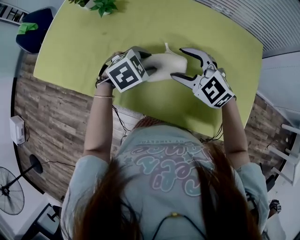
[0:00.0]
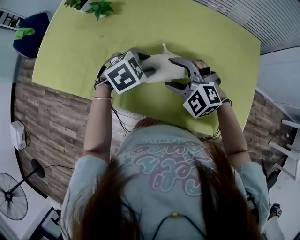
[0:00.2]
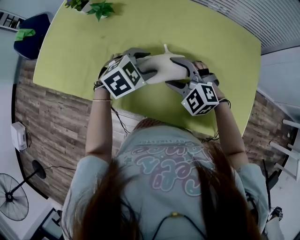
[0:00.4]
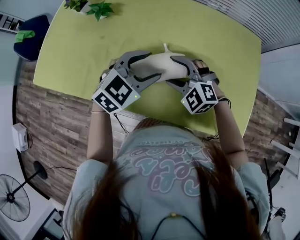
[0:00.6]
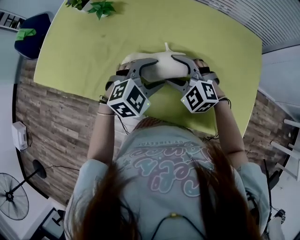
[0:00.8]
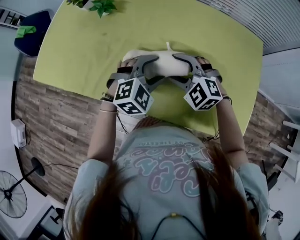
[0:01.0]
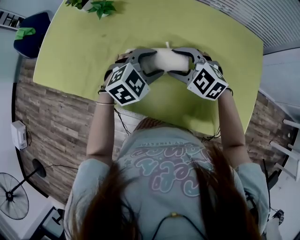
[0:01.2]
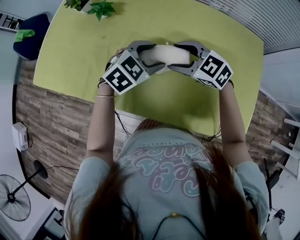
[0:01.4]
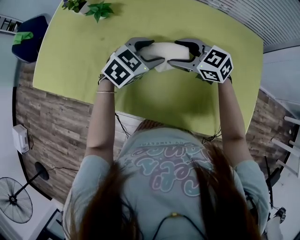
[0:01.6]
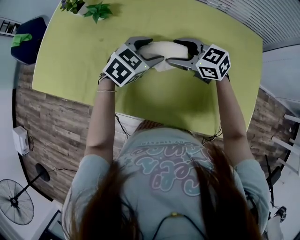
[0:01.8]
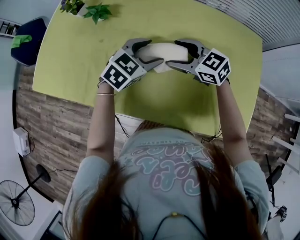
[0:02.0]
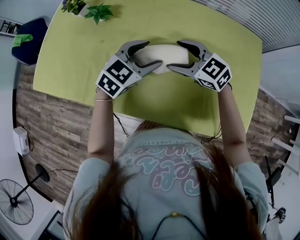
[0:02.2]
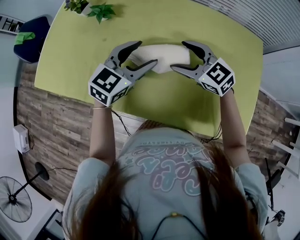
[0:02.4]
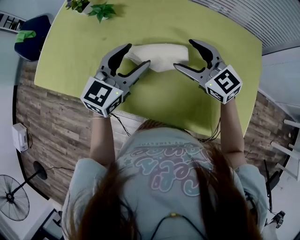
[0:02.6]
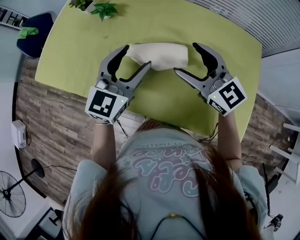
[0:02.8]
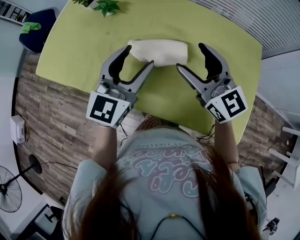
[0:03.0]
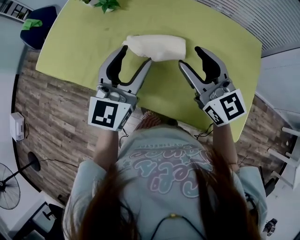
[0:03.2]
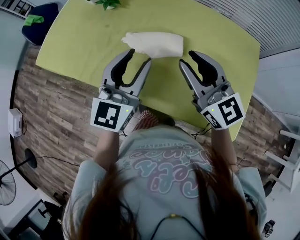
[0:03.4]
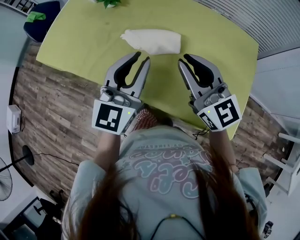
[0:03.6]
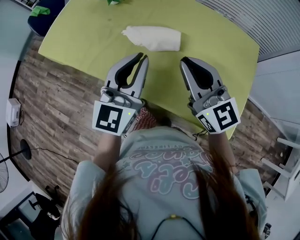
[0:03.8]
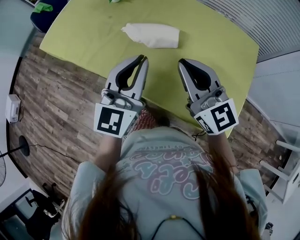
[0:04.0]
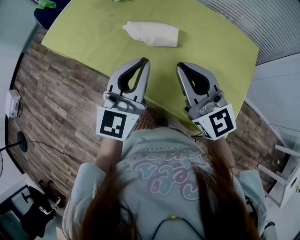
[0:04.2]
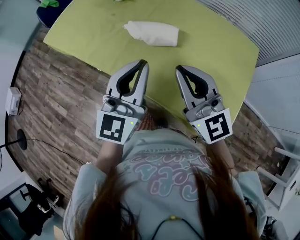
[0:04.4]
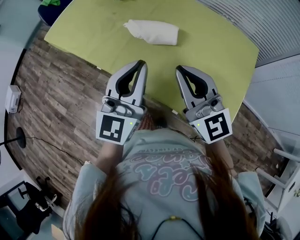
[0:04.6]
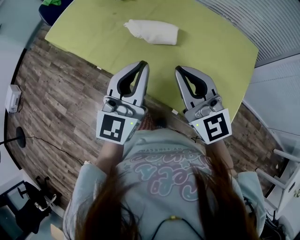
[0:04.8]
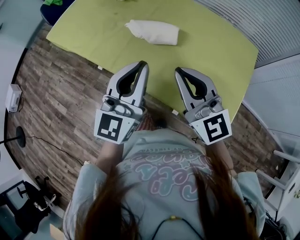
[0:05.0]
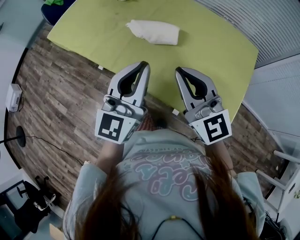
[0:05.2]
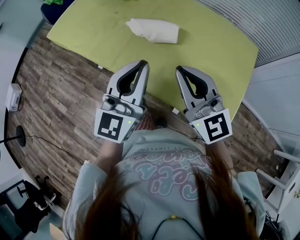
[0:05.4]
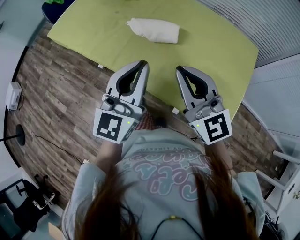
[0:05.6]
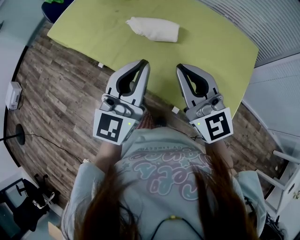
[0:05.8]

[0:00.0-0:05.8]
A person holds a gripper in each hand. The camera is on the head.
0:00.0 to 0:01.4: The right gripper ends up approximately 5 cm from where it was.
0:01.4 to 0:02.8: The right gripper travels upward by approximately 10 cm, and turns by roughly 30 degrees. The left gripper is displaced upward and to the left by approximately 10 cm, and angles its fingers upward, by roughly 30 degrees.
0:02.8 to 0:04.4: The two grippers go about 15 cm backward. The right gripper closes; the left gripper rotates roughly 30 degrees, and closes up.
0:04.4 to 0:05.8: The grippers move only a little.

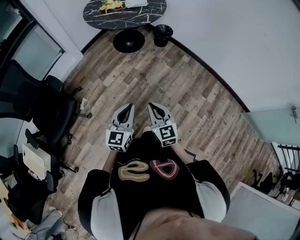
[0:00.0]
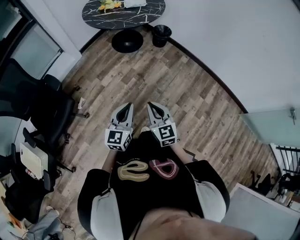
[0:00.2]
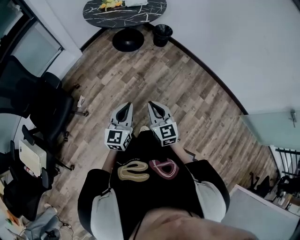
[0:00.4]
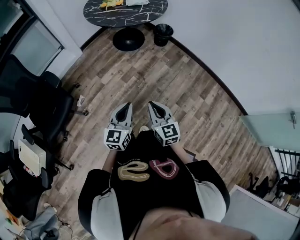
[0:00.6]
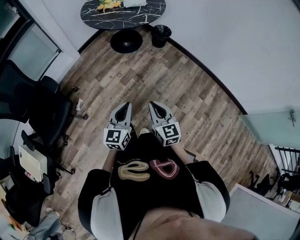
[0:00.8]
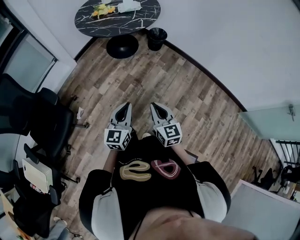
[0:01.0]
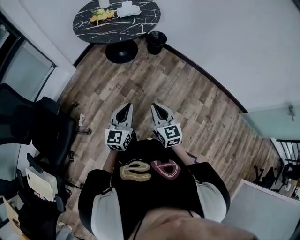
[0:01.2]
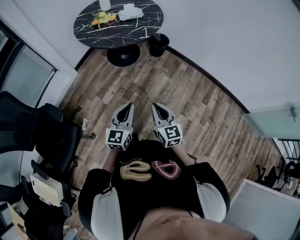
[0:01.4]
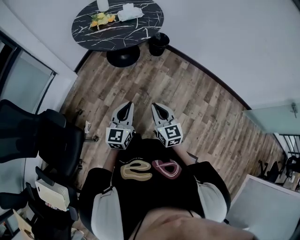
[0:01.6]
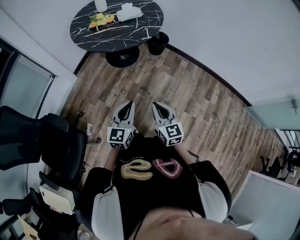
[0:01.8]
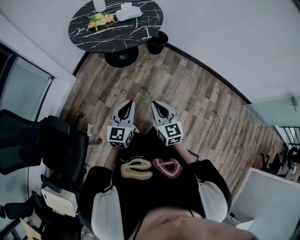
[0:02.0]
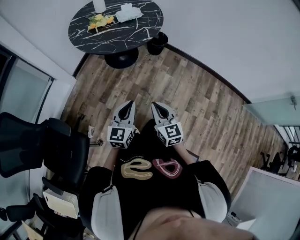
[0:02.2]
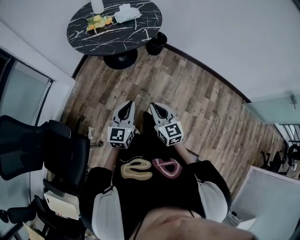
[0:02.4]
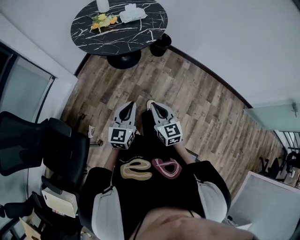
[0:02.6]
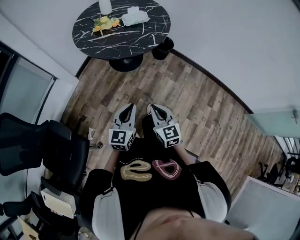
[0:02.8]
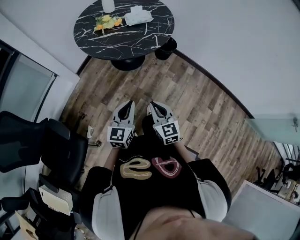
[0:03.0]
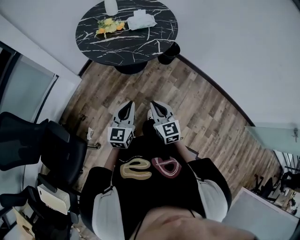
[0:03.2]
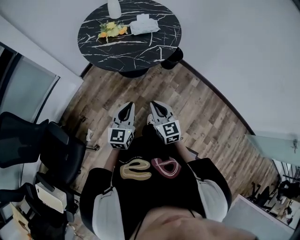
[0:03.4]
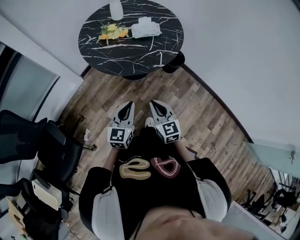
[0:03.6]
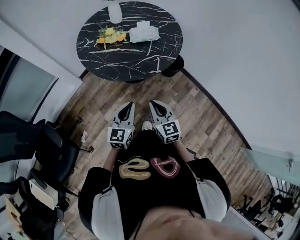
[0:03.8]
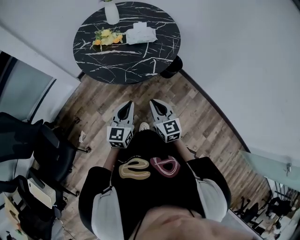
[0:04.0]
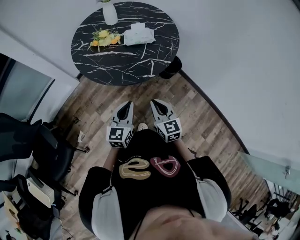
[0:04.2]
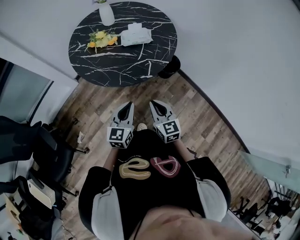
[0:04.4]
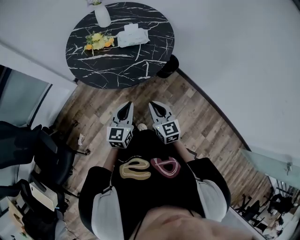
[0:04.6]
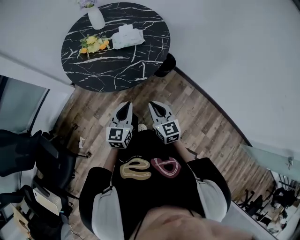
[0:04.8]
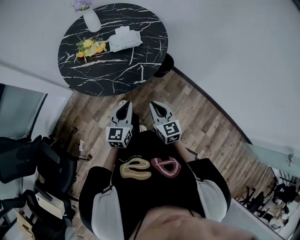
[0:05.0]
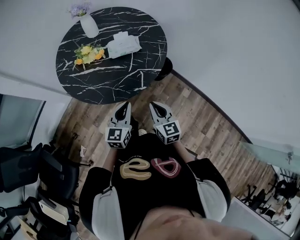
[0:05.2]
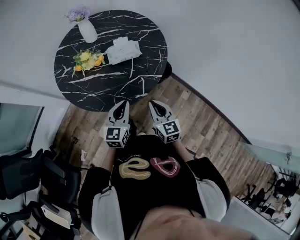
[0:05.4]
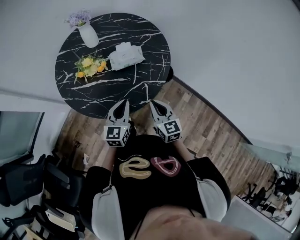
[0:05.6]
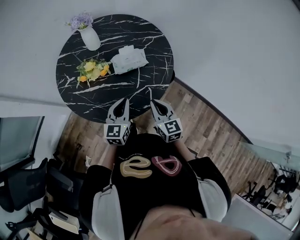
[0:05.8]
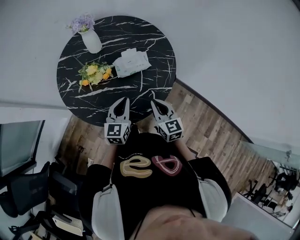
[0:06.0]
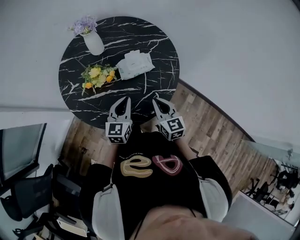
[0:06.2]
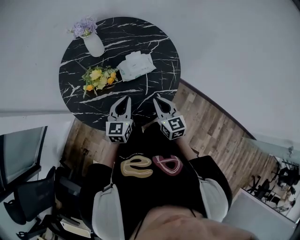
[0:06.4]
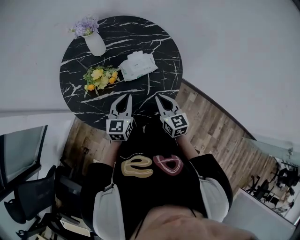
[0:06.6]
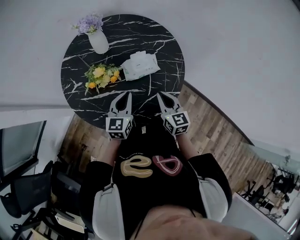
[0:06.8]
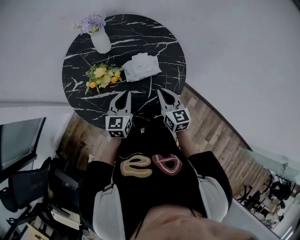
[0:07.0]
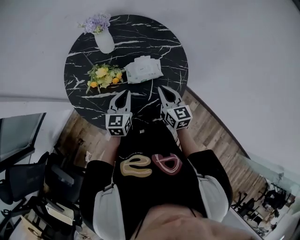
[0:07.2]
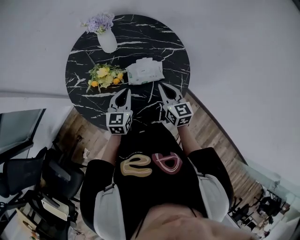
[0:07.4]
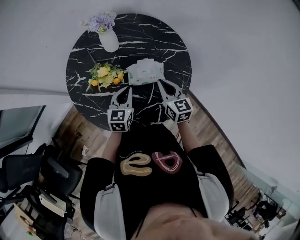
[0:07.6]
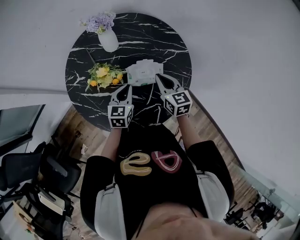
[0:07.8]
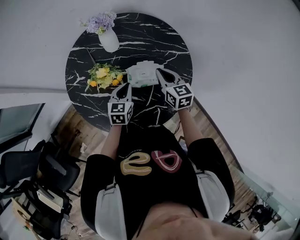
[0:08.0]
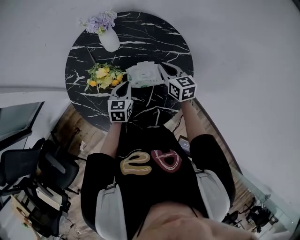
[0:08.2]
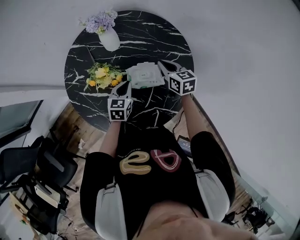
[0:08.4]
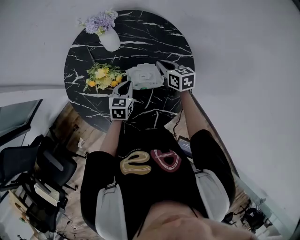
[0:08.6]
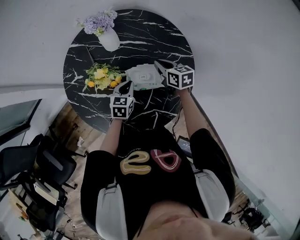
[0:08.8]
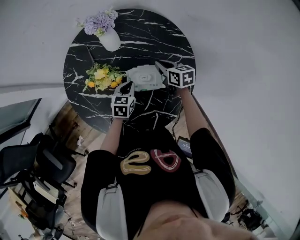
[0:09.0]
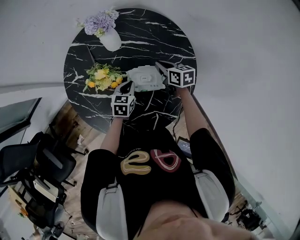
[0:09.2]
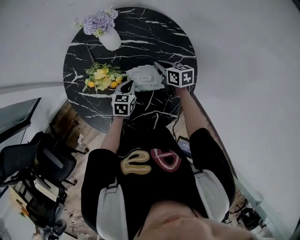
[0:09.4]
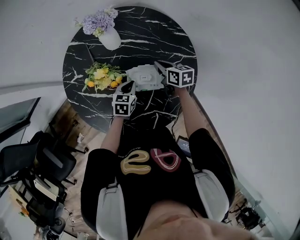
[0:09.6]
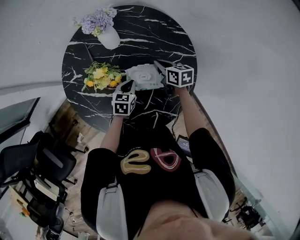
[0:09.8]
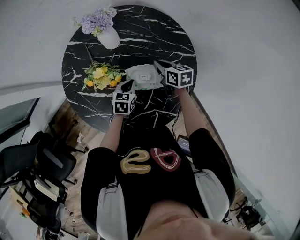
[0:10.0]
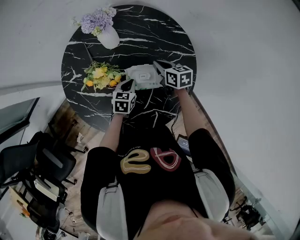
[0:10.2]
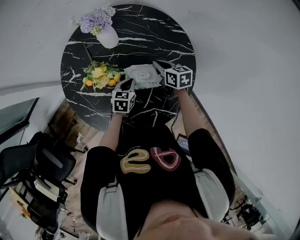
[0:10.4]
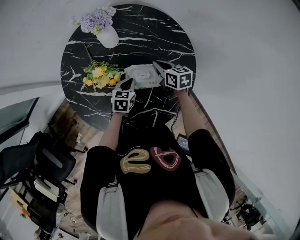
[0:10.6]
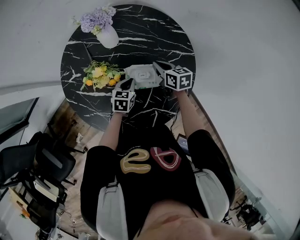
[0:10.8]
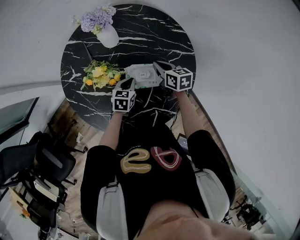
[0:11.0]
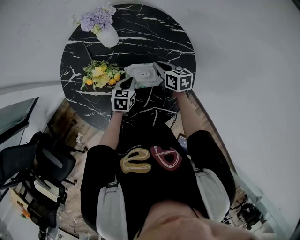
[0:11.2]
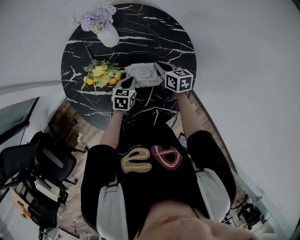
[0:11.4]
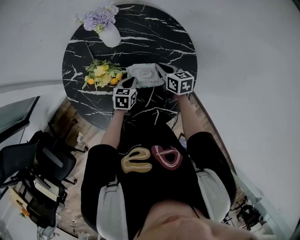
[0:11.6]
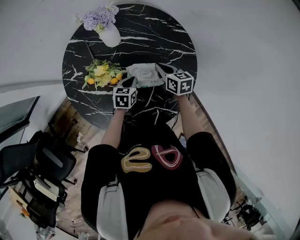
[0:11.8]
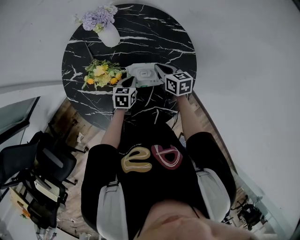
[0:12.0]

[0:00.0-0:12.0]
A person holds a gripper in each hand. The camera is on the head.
0:00.0 to 0:01.6: Both grippers travel together forward, some 20 cm.
0:01.6 to 0:03.0: The left gripper is displaced forward by approximately 10 cm. Meanwhile the right gripper moves forward and to the left, about 15 cm.
0:03.0 to 0:04.4: The two grippers go some 25 cm forward and to the right.
0:04.4 to 0:06.0: The grippers both shift forward by roughly 25 cm.
0:06.0 to 0:07.6: The left gripper travels forward by about 15 cm. The right gripper moves forward, about 20 cm.
0:07.6 to 0:09.0: The right gripper moves forward and downward, approximately 15 cm, and swivels about 30 degrees. The left gripper heads downward and forward, covering some 10 cm.
0:09.0 to 0:12.0: The grippers move only a little.

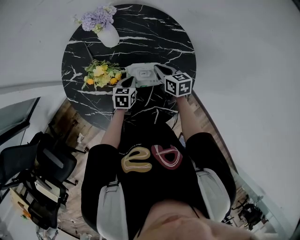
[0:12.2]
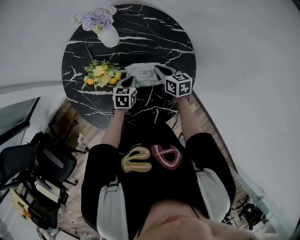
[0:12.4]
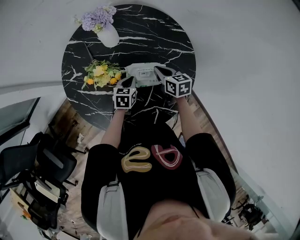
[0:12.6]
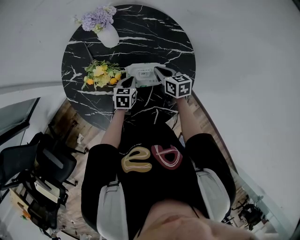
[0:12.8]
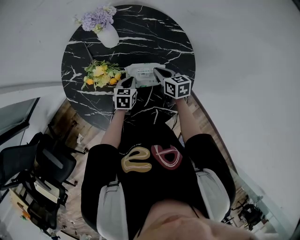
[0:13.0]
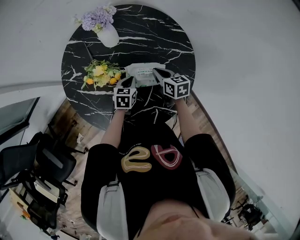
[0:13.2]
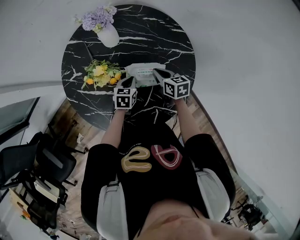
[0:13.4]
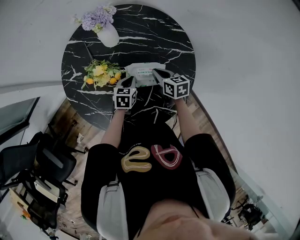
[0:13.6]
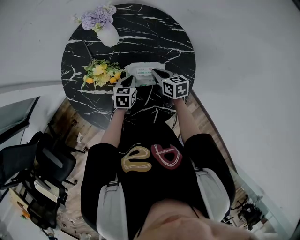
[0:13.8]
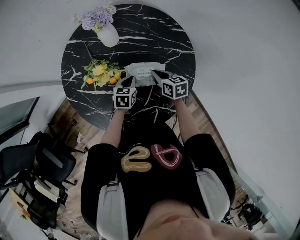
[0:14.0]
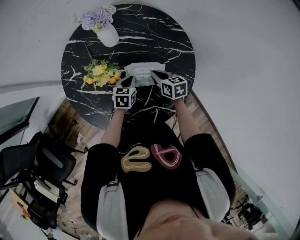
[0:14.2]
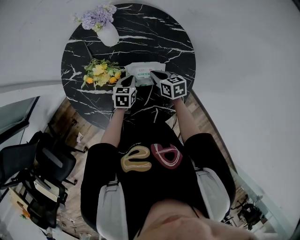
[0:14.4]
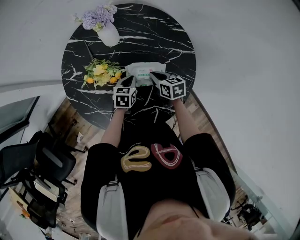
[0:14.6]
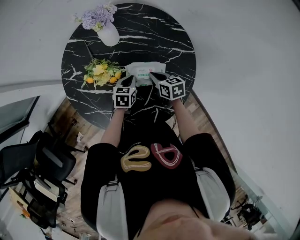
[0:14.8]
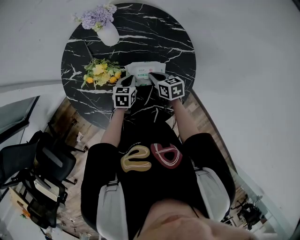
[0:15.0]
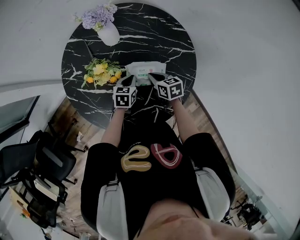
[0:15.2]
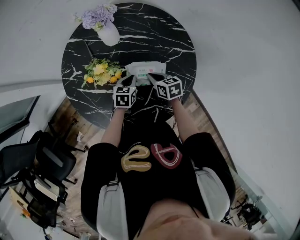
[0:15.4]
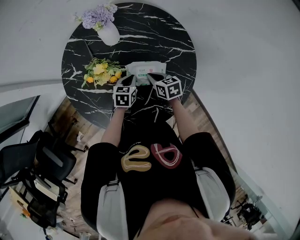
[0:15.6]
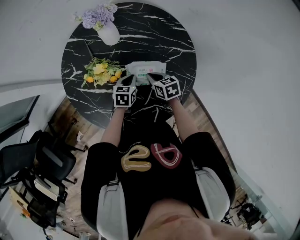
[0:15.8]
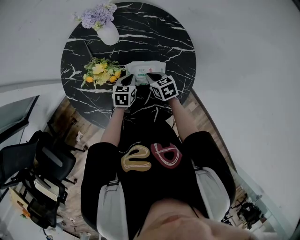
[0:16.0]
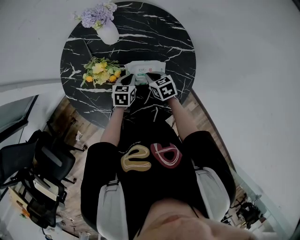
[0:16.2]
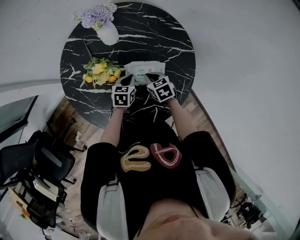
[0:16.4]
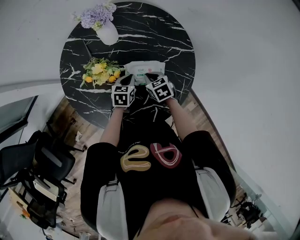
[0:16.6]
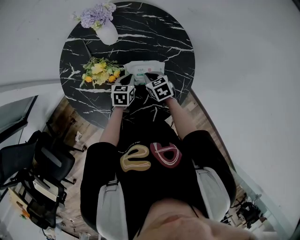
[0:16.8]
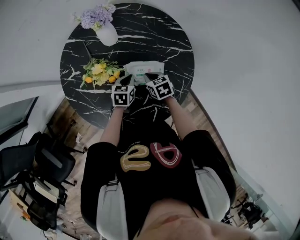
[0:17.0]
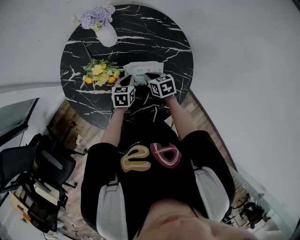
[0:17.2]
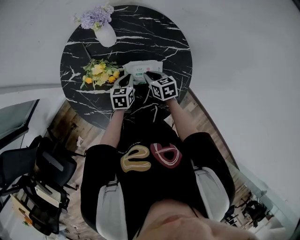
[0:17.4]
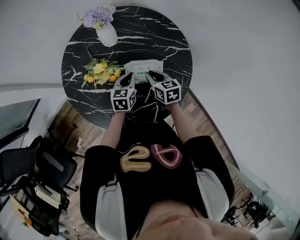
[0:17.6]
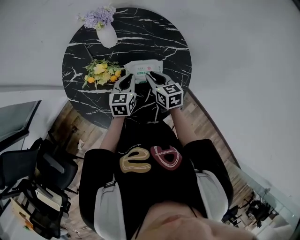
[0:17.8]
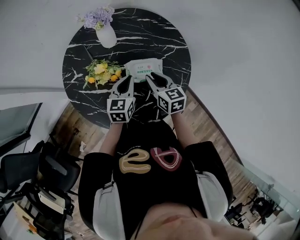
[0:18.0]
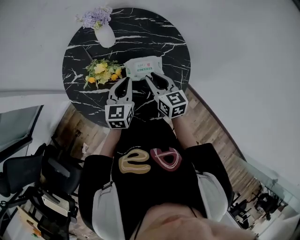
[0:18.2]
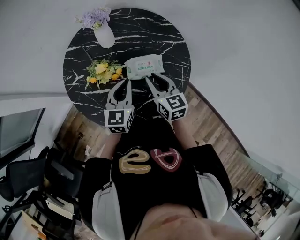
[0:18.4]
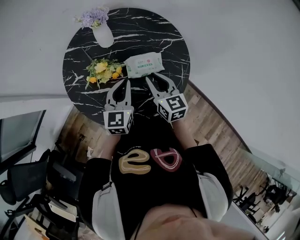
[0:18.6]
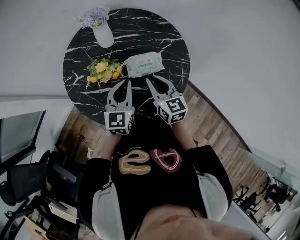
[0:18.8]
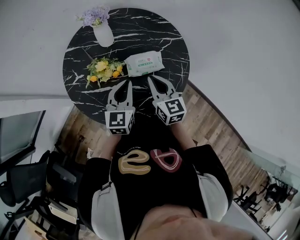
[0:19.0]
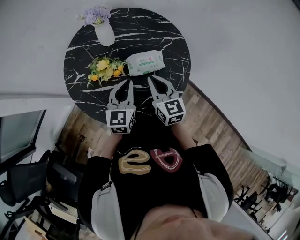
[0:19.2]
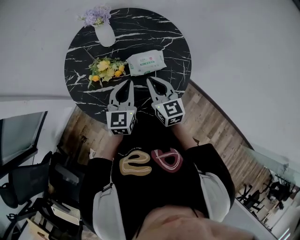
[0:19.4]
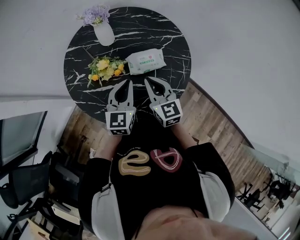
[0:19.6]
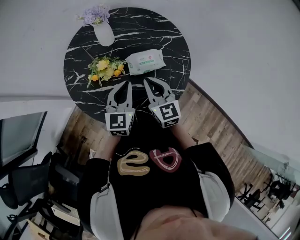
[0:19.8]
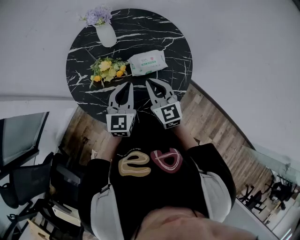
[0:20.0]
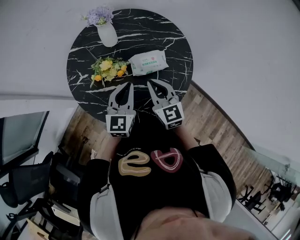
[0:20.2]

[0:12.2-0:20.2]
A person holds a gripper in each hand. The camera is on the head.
0:12.2 to 0:13.8: There are only small adjustments of the grippers.
0:13.8 to 0:15.4: The grippers move only a little.
0:15.4 to 0:17.0: The grippers move only a little.
0:17.0 to 0:18.6: The grippers both shift upward and backward by roughly 20 cm. The left gripper points its fingers some 30 degrees further upward, while the right gripper tips its fingers upward by roughly 30 degrees, and opens up.
0:18.6 to 0:20.2: The right gripper moves about 5 cm, and closes its fingers.
